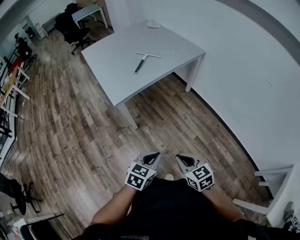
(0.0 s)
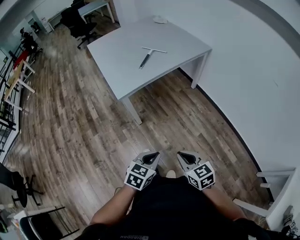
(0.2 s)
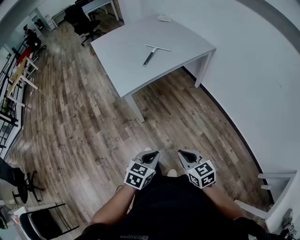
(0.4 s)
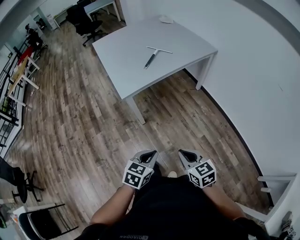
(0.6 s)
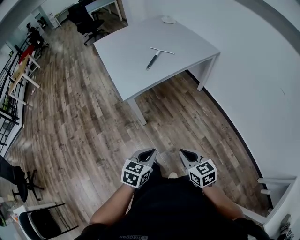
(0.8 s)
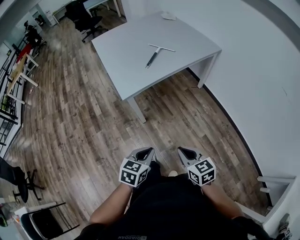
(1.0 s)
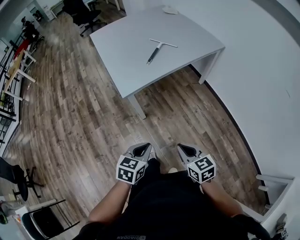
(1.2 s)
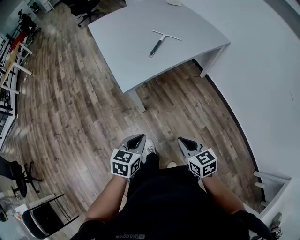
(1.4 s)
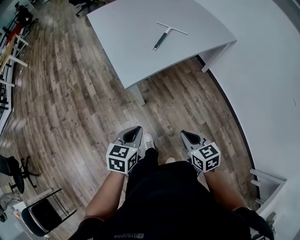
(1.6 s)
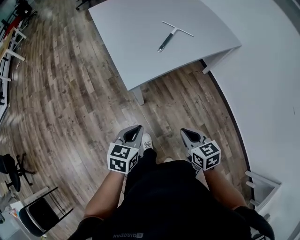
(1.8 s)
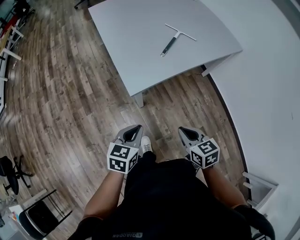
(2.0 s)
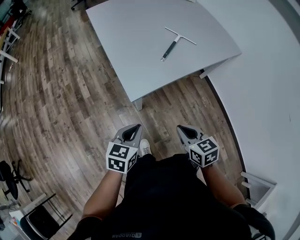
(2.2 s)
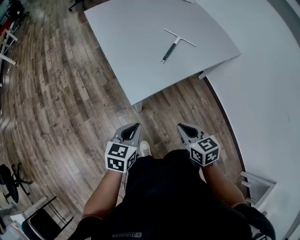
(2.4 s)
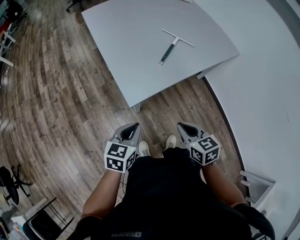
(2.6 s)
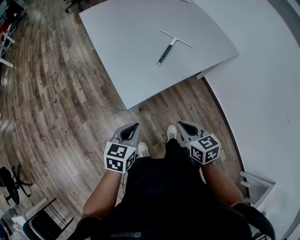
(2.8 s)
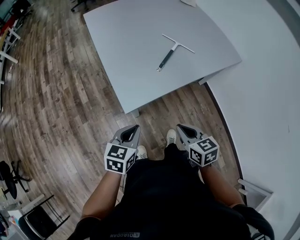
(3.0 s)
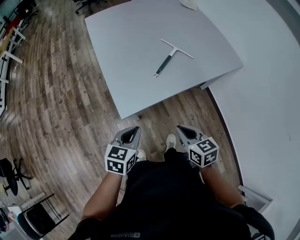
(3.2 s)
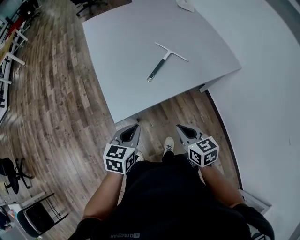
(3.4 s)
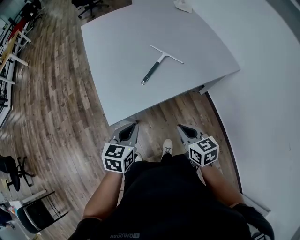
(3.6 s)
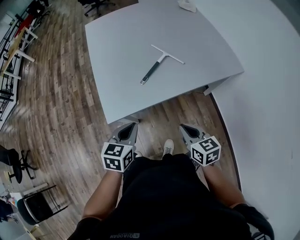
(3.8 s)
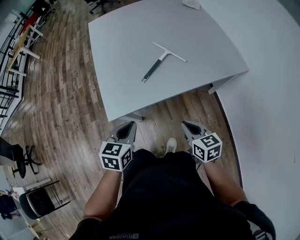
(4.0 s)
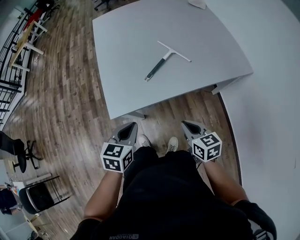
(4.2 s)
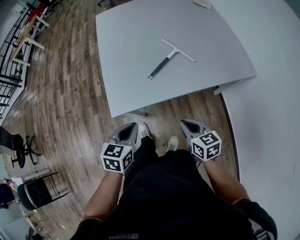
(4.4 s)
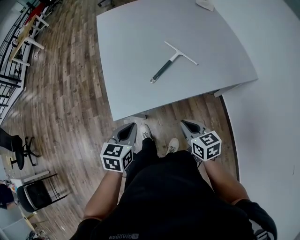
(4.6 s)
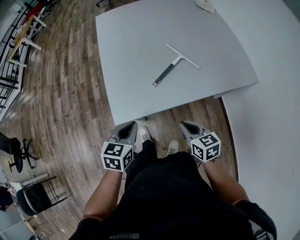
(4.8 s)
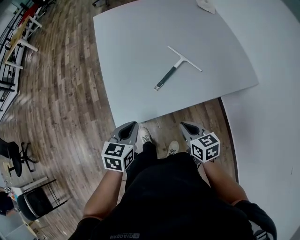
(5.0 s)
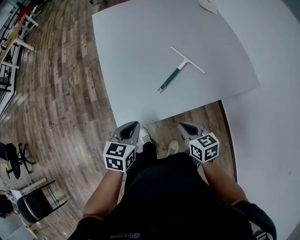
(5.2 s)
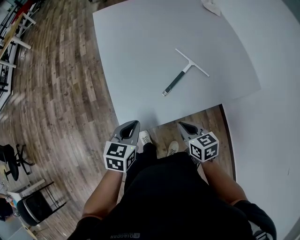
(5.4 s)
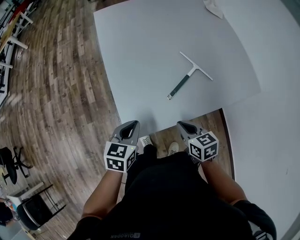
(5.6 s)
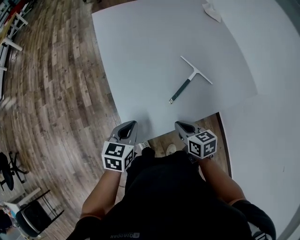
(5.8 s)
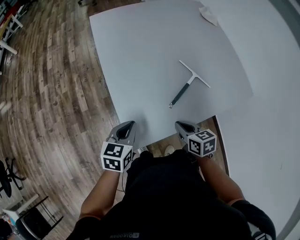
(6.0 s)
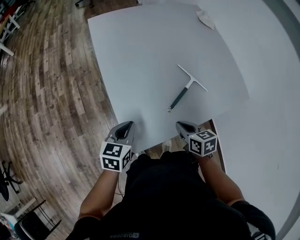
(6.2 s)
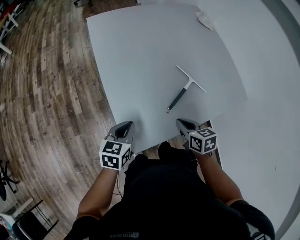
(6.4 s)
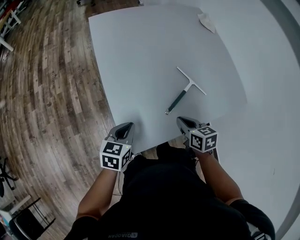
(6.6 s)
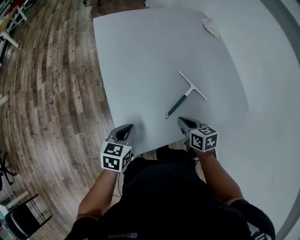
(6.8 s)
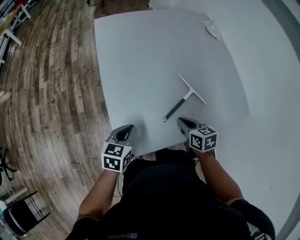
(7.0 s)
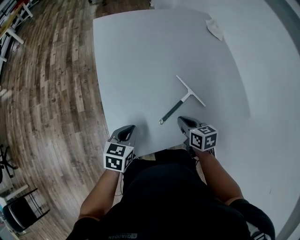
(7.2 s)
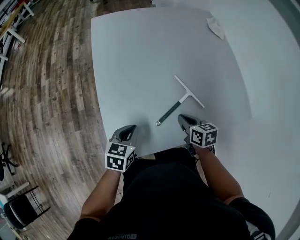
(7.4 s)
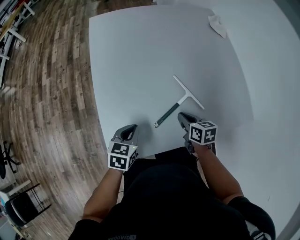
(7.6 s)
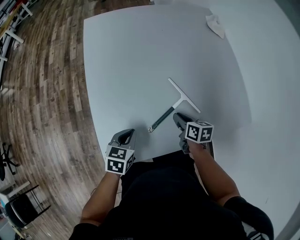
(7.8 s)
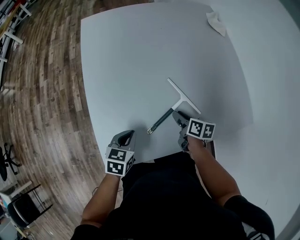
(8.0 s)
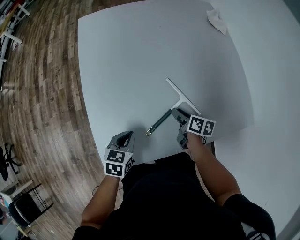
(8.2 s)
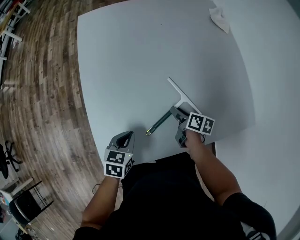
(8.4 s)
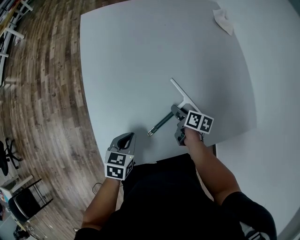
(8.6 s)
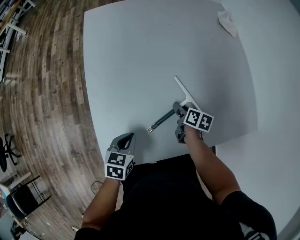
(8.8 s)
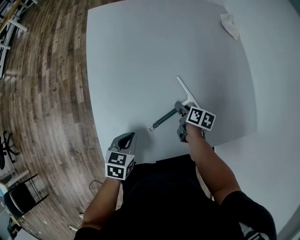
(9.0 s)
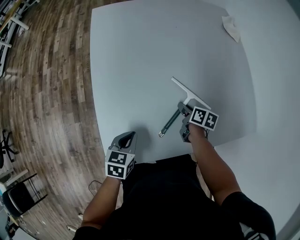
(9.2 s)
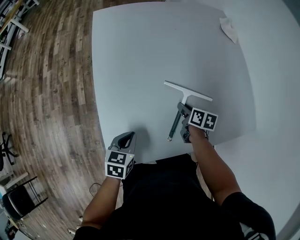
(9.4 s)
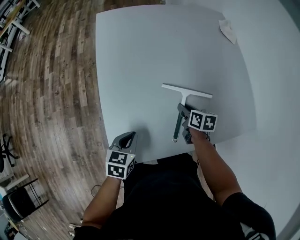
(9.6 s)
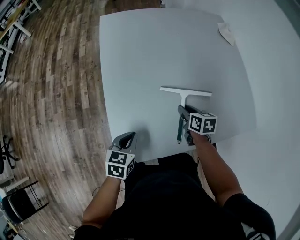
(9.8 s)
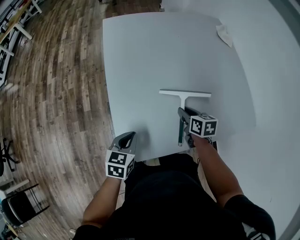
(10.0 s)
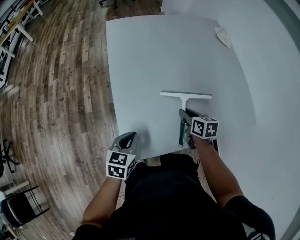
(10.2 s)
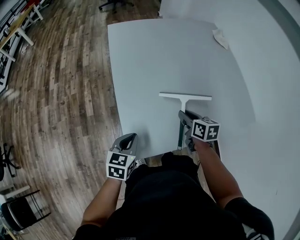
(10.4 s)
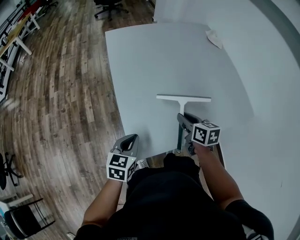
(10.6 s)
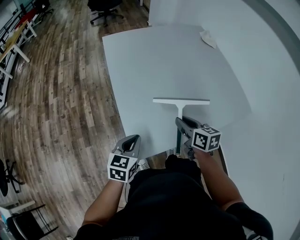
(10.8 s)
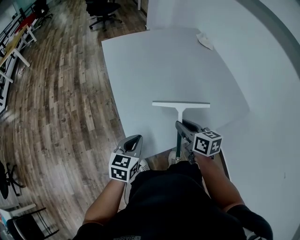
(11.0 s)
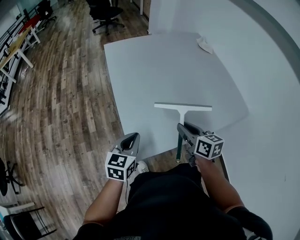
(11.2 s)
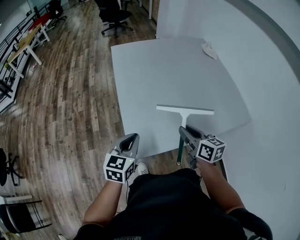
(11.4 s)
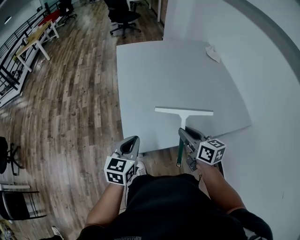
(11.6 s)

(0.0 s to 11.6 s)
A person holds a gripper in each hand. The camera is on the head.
0.0 s - 1.4 s: The right gripper moves forward and to the left, roughly 15 cm. The left gripper moves to the left and forward, roughly 15 cm.
1.4 s - 2.8 s: Both grippers move forward, roughly 20 cm.
2.8 s - 4.4 s: The right gripper shifts about 20 cm to the right and forward. The left gripper shifts approximately 15 cm to the right, and changes its angle by roughly 20 degrees.
4.4 s - 5.8 s: Both grippers move forward and to the left, roughly 20 cm.
5.8 s - 7.2 s: The right gripper heads forward and to the right, covering some 15 cm. Meanwhile the left gripper moves forward and to the right, roughly 10 cm.
7.2 s - 8.8 s: The left gripper travels to the right and downward by roughly 10 cm; the right gripper travels forward, downward and to the right by approximately 20 cm, rotates approximately 30 degrees, and opens its fingers.
8.8 s - 10.2 s: The right gripper travels upward, to the left and backward by roughly 15 cm, and changes its angle by some 30 degrees. Meanwhile the left gripper moves to the left, upward and backward, roughly 15 cm.
10.2 s - 11.6 s: The right gripper moves backward and upward, roughly 25 cm, and swivels about 20 degrees, while the left gripper heads upward and backward, covering some 15 cm.

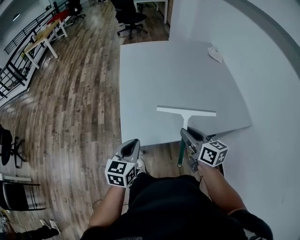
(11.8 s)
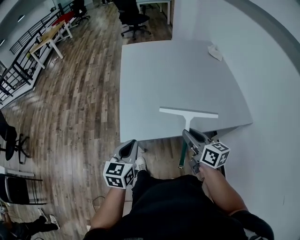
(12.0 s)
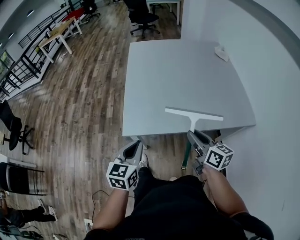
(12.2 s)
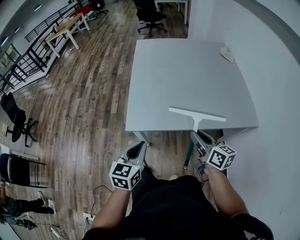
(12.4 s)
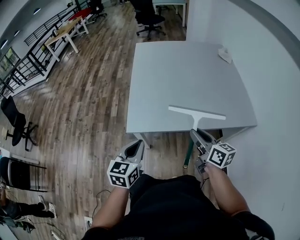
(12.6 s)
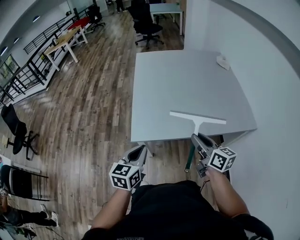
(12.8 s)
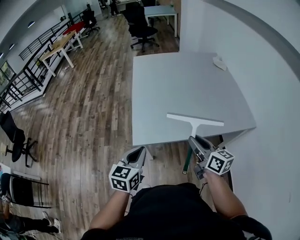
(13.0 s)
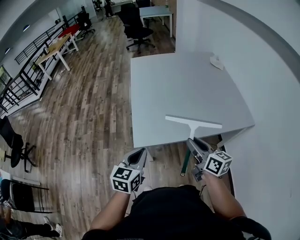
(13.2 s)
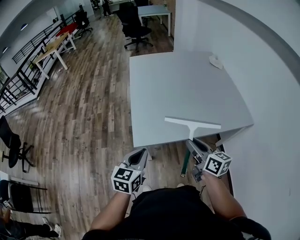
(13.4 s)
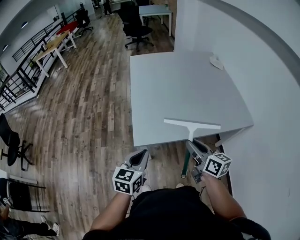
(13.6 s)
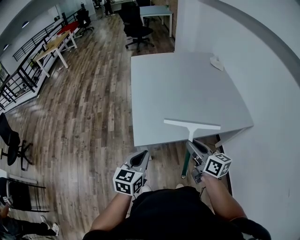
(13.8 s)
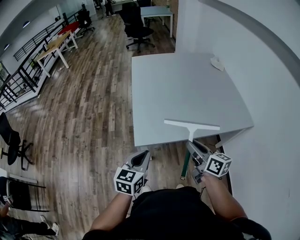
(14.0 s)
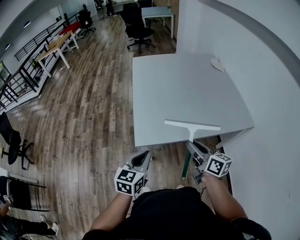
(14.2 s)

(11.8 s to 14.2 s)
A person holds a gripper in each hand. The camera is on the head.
11.8 s - 13.0 s: The grippers both shift backward by some 10 cm.
13.0 s - 14.2 s: The grippers move only a little.

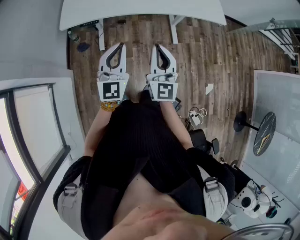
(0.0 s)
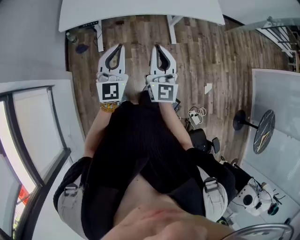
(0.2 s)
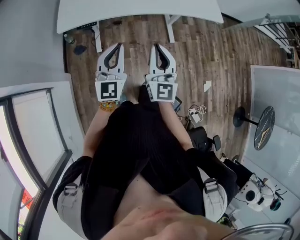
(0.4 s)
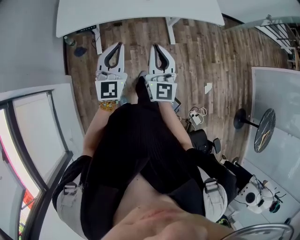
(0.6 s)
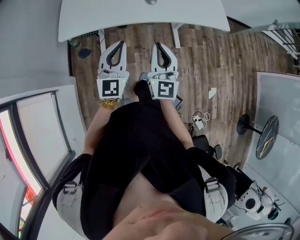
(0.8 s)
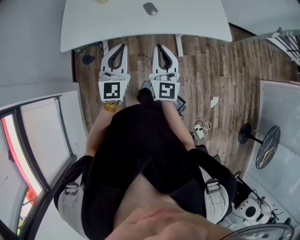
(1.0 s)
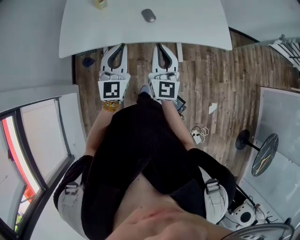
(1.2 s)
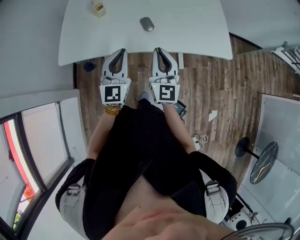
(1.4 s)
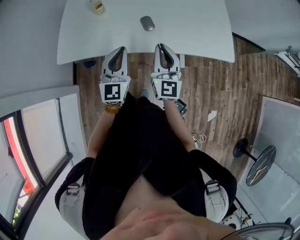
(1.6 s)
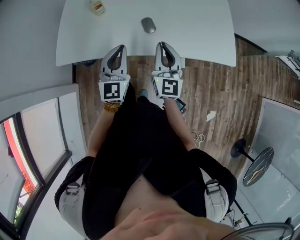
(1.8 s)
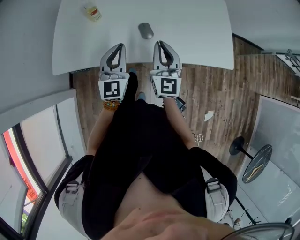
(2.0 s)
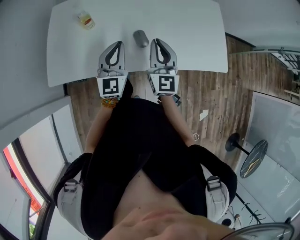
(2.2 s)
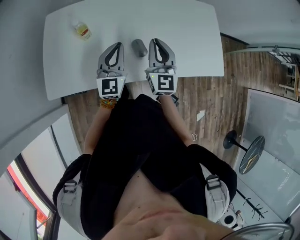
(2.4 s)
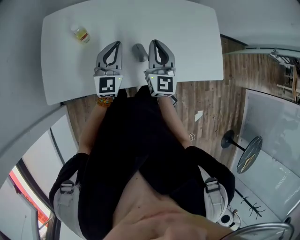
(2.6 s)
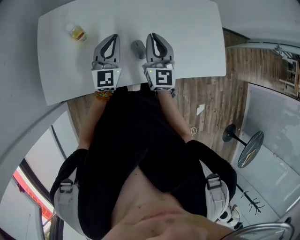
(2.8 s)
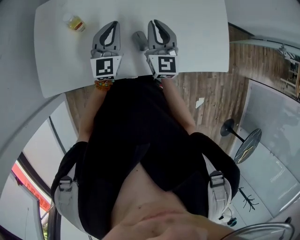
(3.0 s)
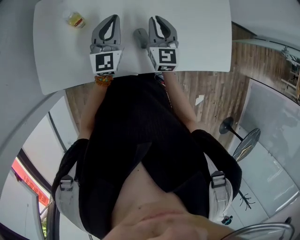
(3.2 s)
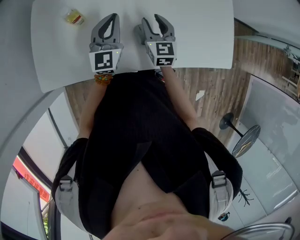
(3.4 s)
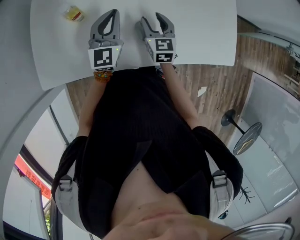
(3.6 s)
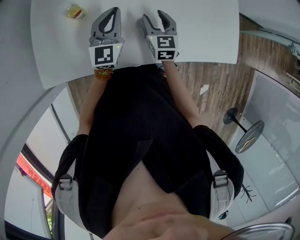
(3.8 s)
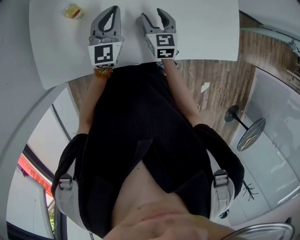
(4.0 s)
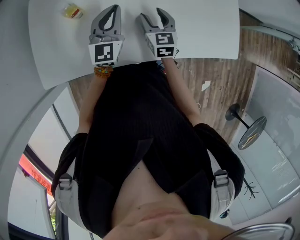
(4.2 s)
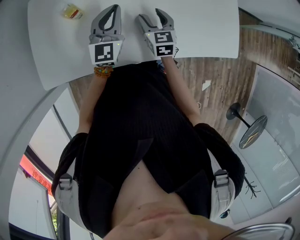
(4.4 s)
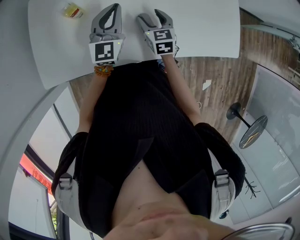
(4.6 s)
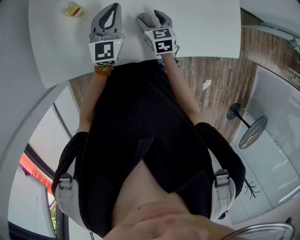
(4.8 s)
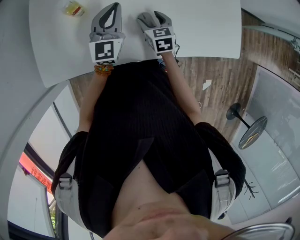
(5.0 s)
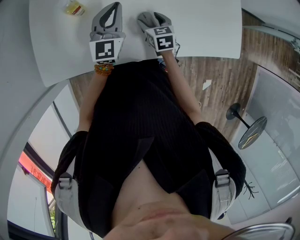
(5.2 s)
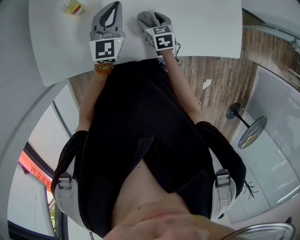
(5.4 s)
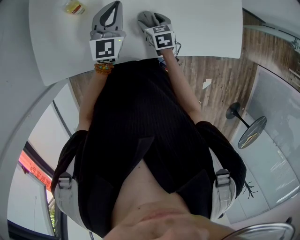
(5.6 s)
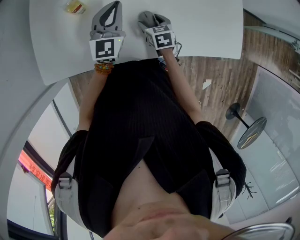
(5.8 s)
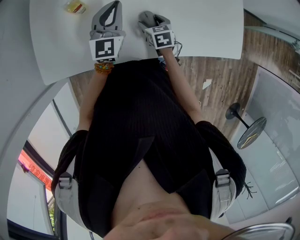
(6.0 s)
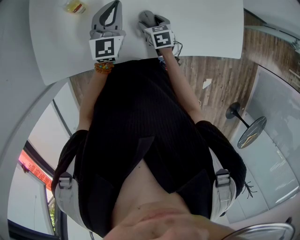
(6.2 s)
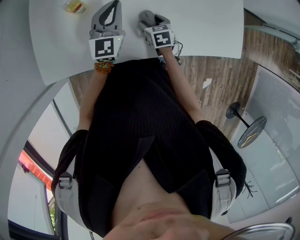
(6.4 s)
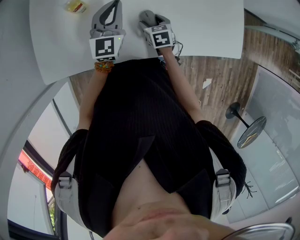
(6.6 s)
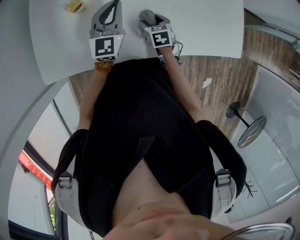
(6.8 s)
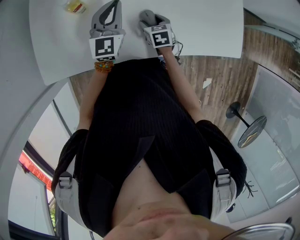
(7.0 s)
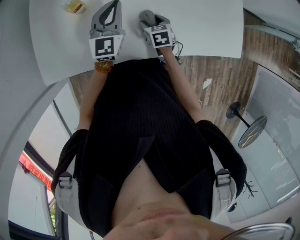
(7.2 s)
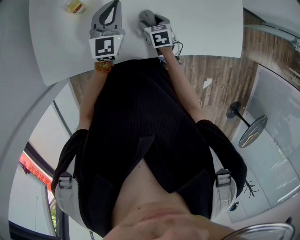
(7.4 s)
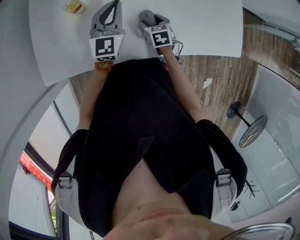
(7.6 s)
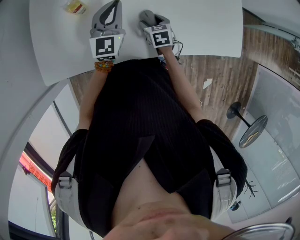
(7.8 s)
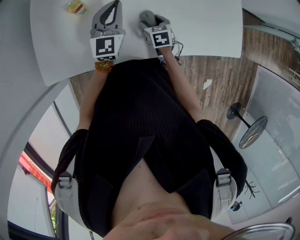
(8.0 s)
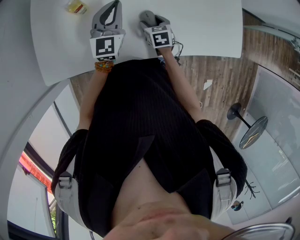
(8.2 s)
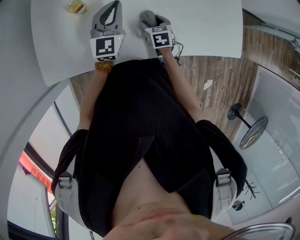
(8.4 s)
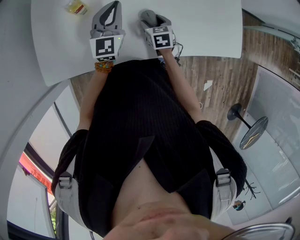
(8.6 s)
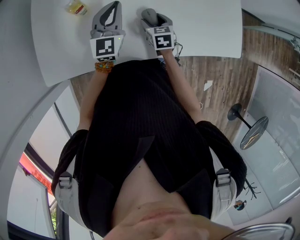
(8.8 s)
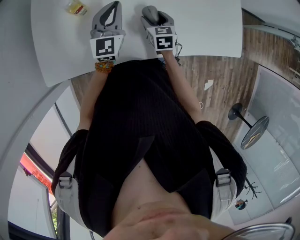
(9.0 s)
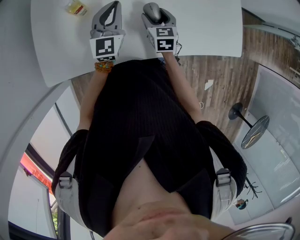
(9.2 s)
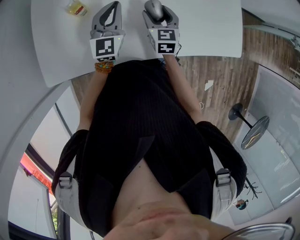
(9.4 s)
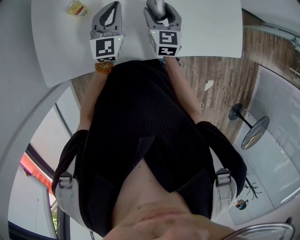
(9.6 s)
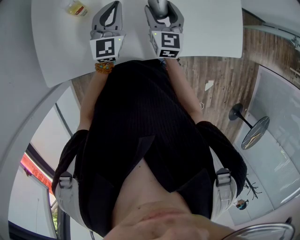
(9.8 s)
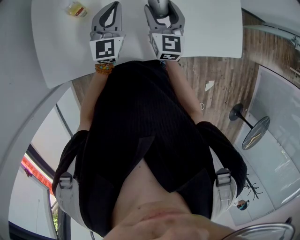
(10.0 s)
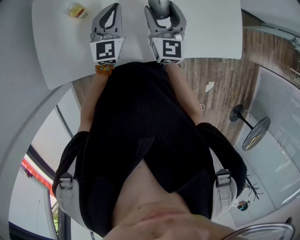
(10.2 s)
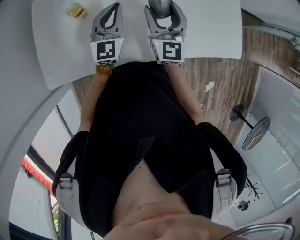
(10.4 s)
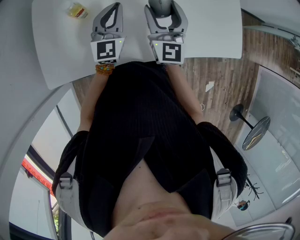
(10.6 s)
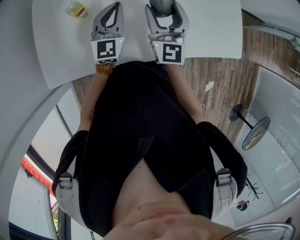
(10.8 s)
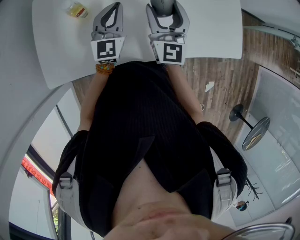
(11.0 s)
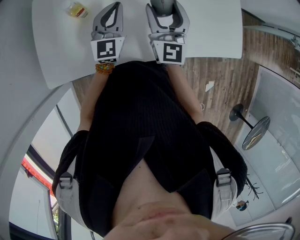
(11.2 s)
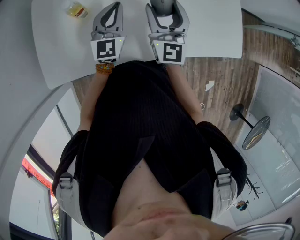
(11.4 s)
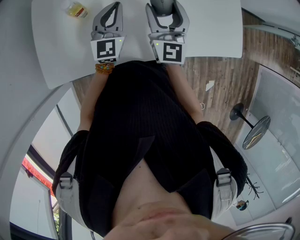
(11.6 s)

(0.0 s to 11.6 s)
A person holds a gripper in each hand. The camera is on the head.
0.0 s - 1.4 s: The grippers both shift forward by roughly 25 cm.
1.4 s - 2.8 s: The two grippers go about 30 cm forward.
2.8 s - 4.4 s: The right gripper goes some 15 cm downward, rotates some 30 degrees, and opens up.
4.4 s - 5.8 s: The right gripper travels downward by about 10 cm, and turns by roughly 20 degrees.
5.8 s - 8.8 s: The grippers stay close to where they were, moving slightly.
8.8 s - 10.2 s: The right gripper travels upward by some 20 cm, and points its fingers about 40 degrees further upward.
10.2 s - 11.6 s: There are only small adjustments of the grippers.
